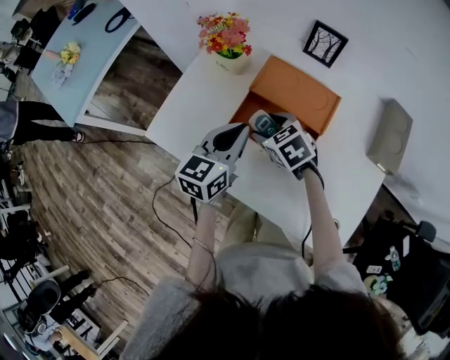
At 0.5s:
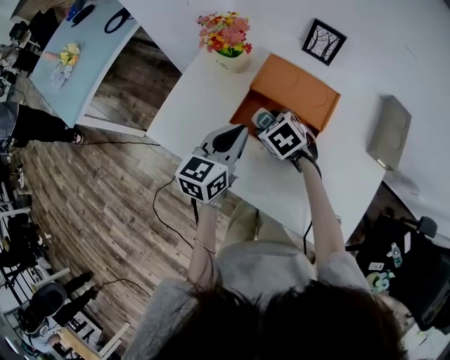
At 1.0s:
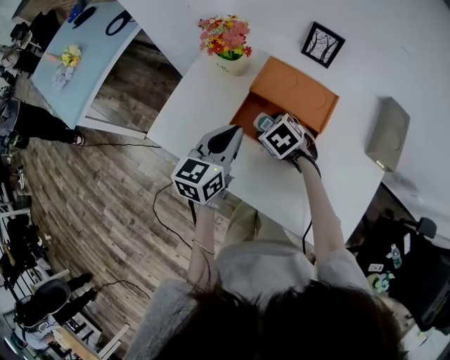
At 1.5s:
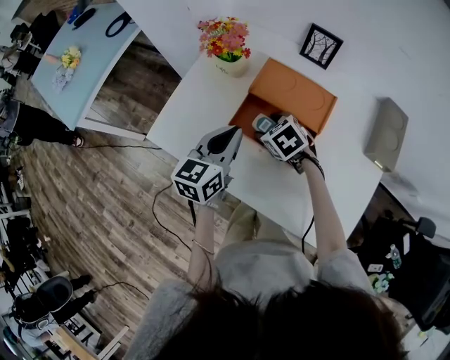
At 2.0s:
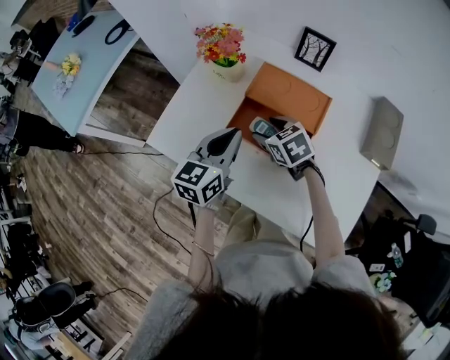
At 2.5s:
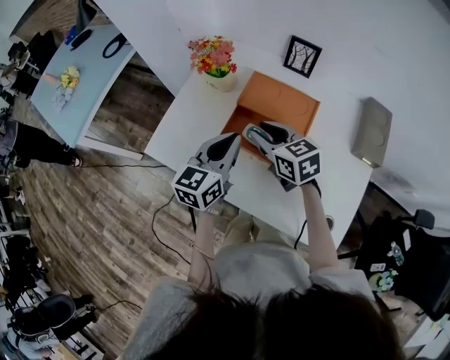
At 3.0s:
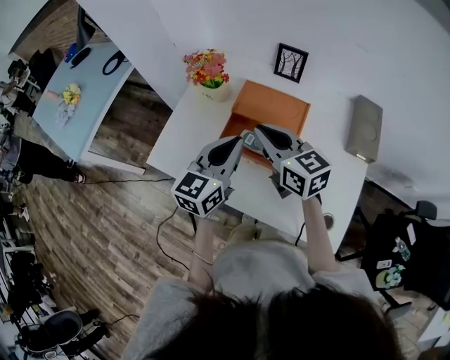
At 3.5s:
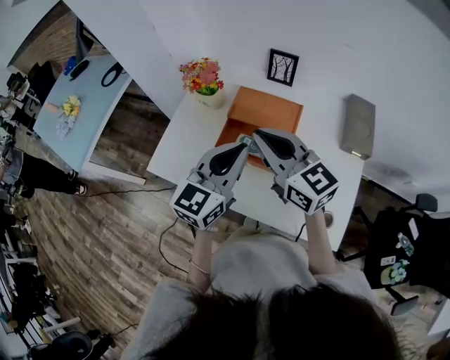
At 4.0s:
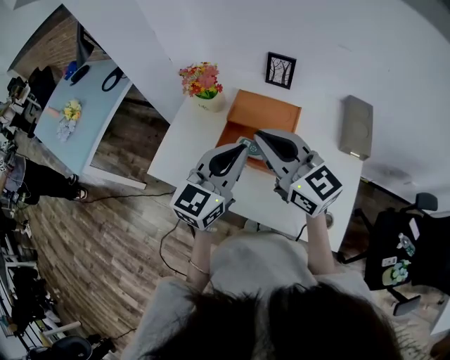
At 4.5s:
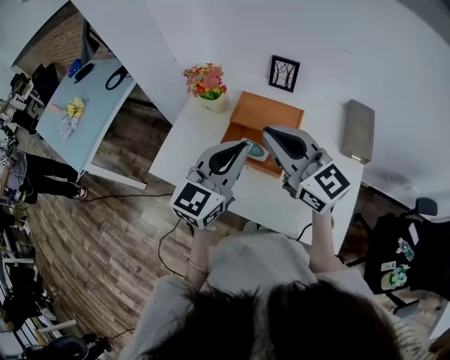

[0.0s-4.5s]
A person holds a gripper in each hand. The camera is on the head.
0.0s to 2.0s: The grippers make only small movements.
2.0s to 4.5s: The right gripper is displaced upward by about 30 cm, tips its fingers upward by about 50 degrees, and closes up; the left gripper travels upward, backward and to the right by roughly 15 cm, and changes its angle by roughly 30 degrees.

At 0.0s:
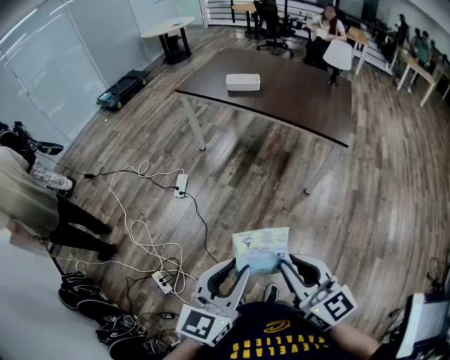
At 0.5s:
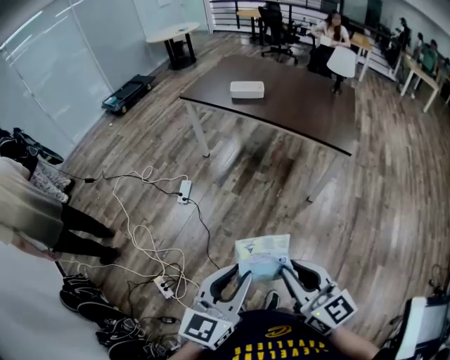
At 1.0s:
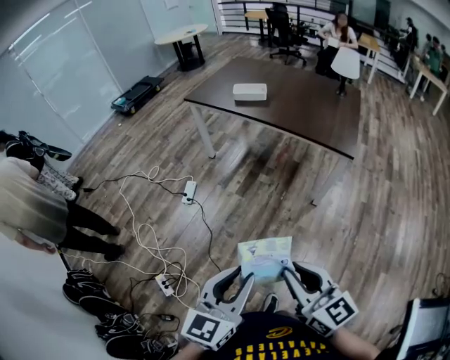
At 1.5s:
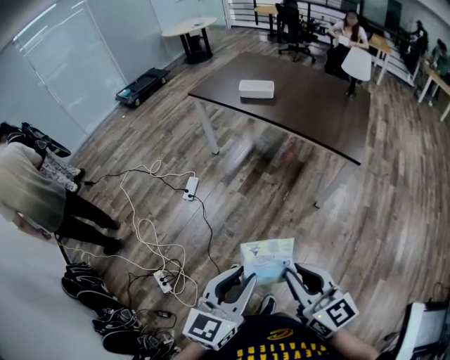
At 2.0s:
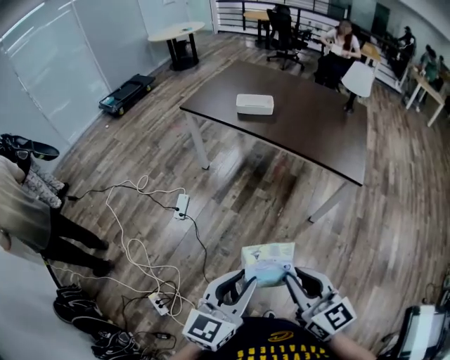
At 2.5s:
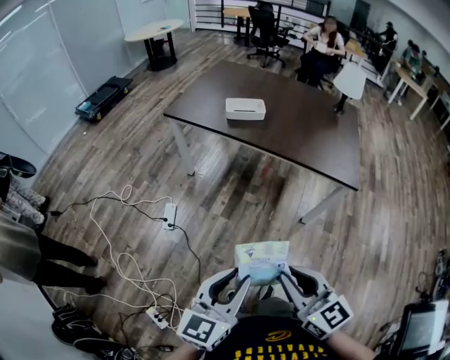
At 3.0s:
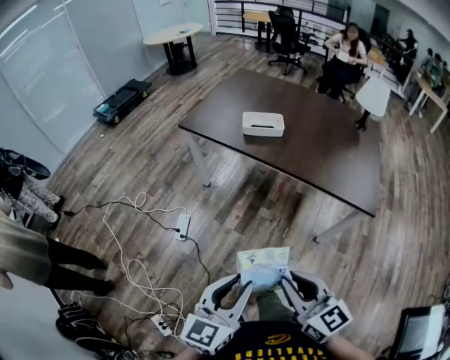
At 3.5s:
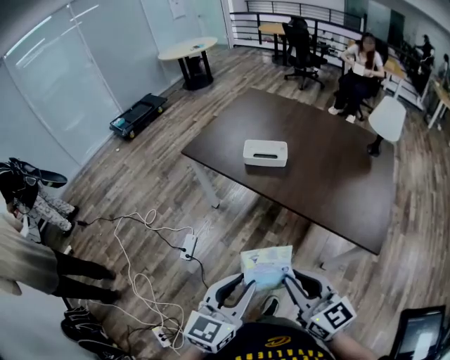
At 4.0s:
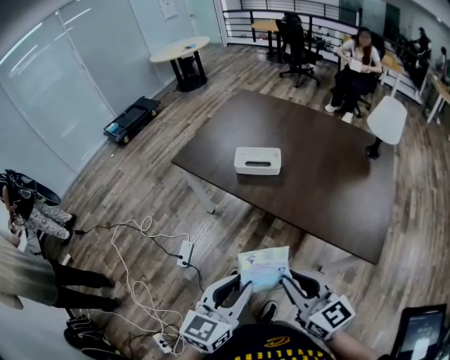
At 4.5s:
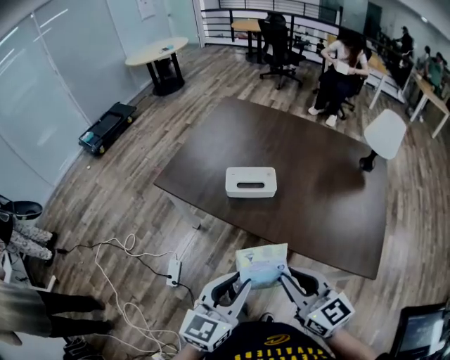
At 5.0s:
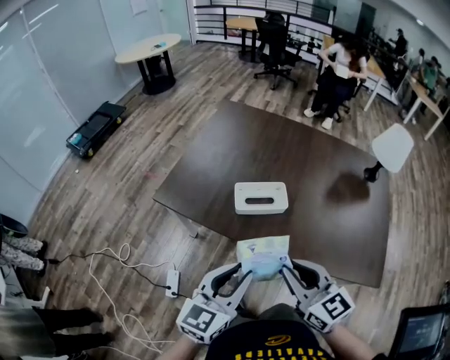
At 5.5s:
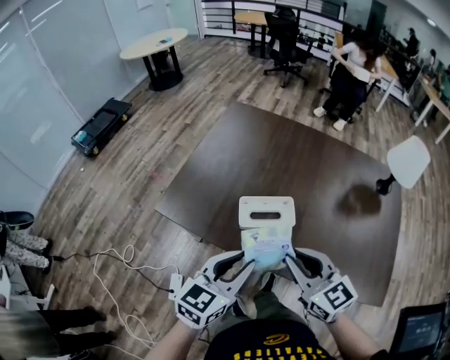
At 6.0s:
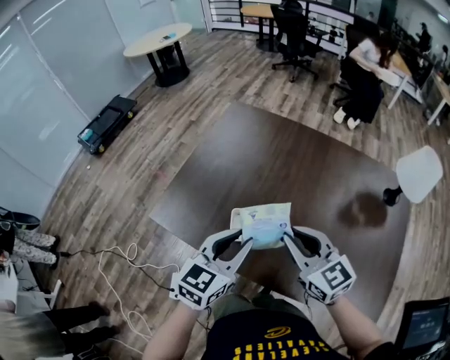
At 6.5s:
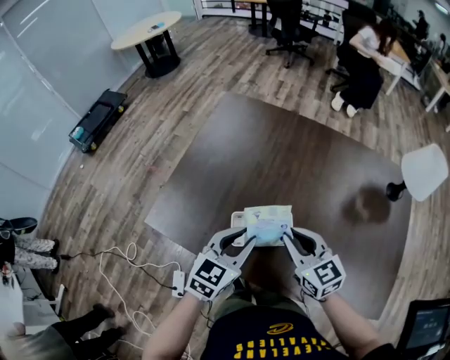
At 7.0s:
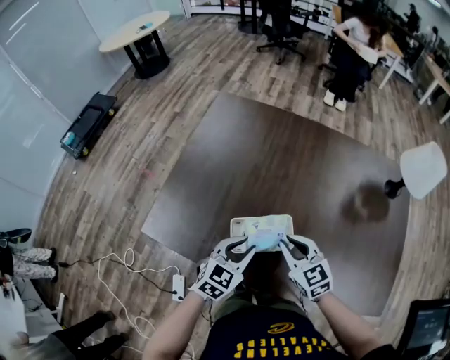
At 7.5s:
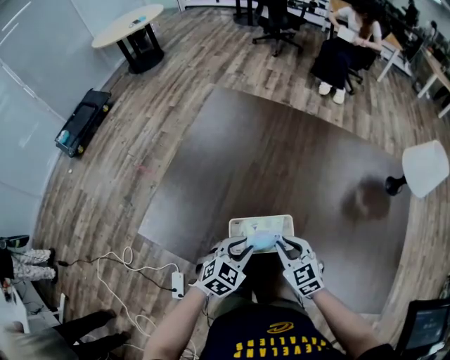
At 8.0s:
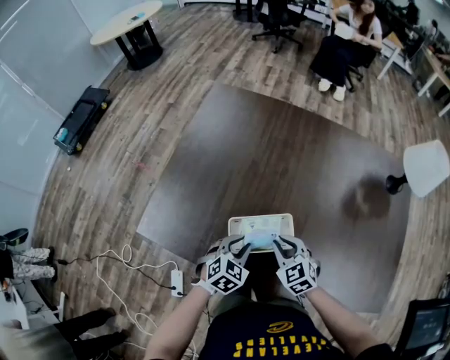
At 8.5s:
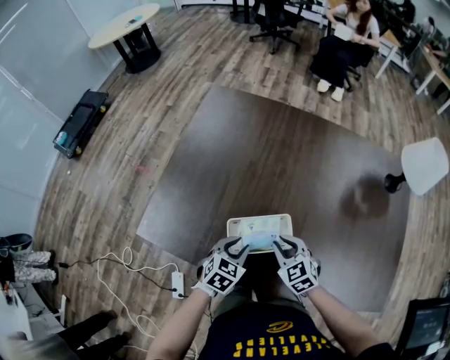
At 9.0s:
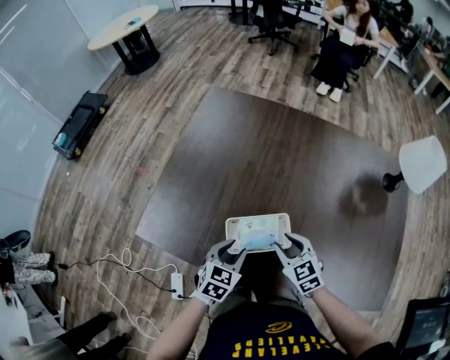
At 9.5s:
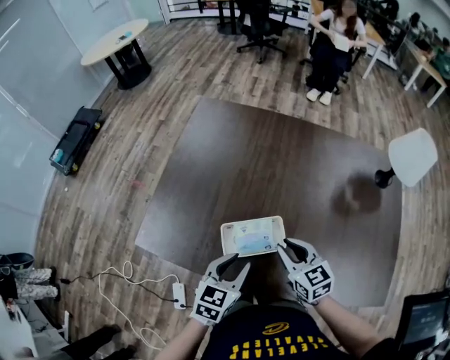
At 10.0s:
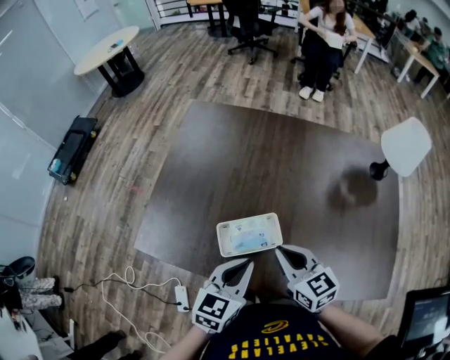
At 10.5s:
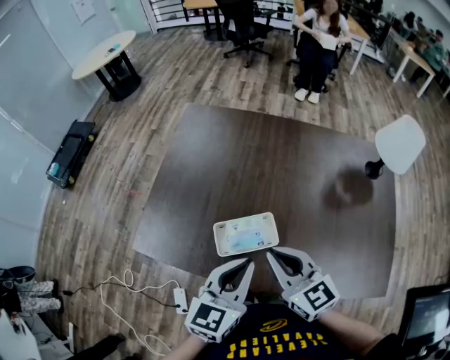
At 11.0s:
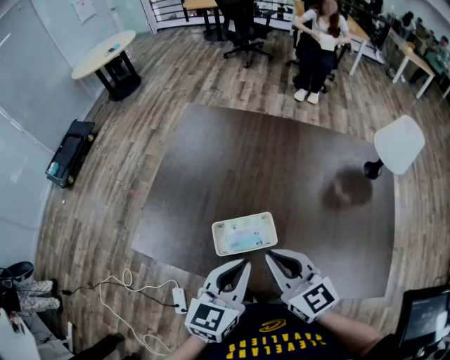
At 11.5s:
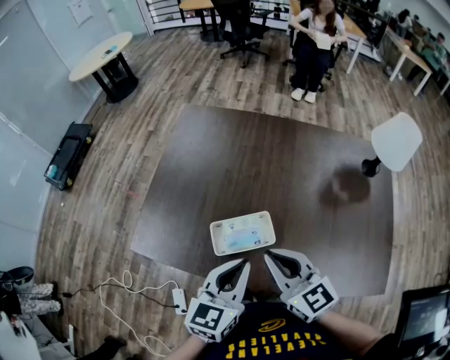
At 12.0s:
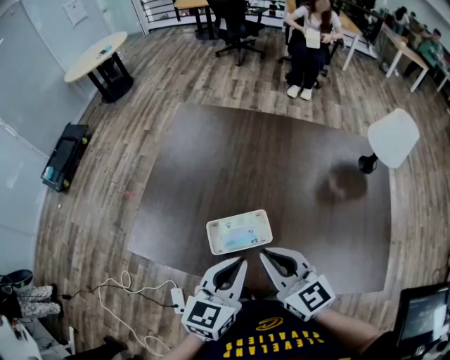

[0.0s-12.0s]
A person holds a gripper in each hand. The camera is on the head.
0.0s to 2.0s: The grippers both shift forward by some 15 cm.
2.0s to 4.0s: Both grippers travel together forward, some 35 cm.
4.0s to 6.0s: The two grippers travel together, forward, some 50 cm.
6.0s to 8.0s: The two grippers go roughly 25 cm downward. The left gripper points its fingers roughly 30 degrees further downward. The right gripper changes its angle by approximately 30 degrees.
8.0s to 10.0s: Both grippers move upward, some 15 cm. The left gripper changes its angle by about 30 degrees, and closes its fingers; the right gripper swivels approximately 30 degrees.
10.0s to 12.0s: The right gripper travels upward by approximately 5 cm.

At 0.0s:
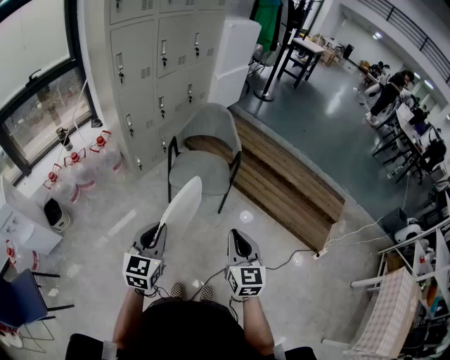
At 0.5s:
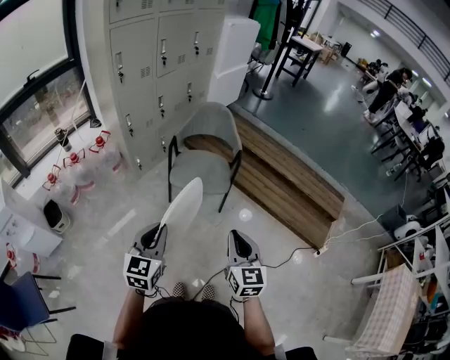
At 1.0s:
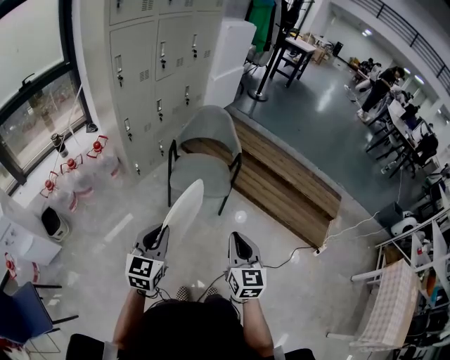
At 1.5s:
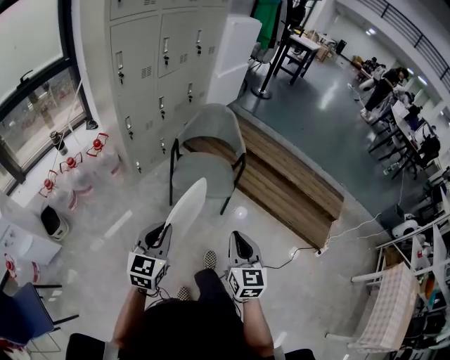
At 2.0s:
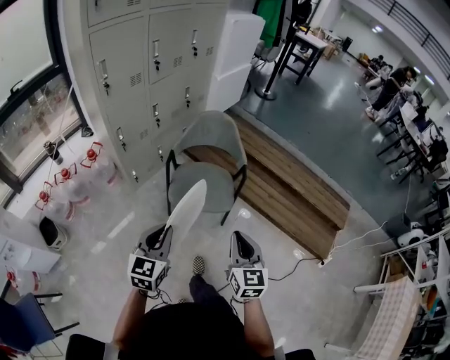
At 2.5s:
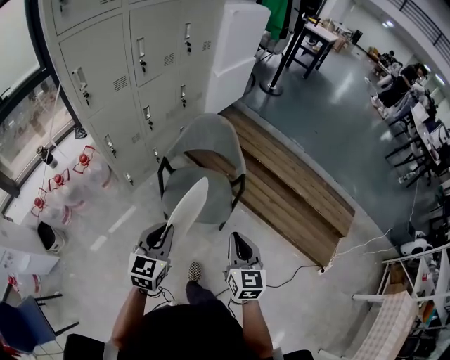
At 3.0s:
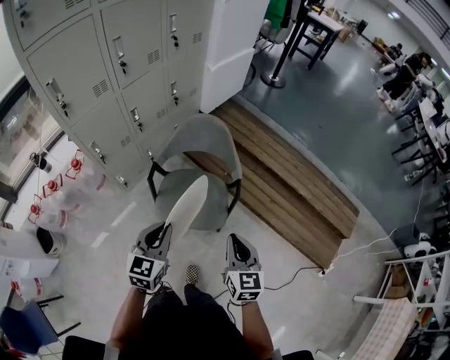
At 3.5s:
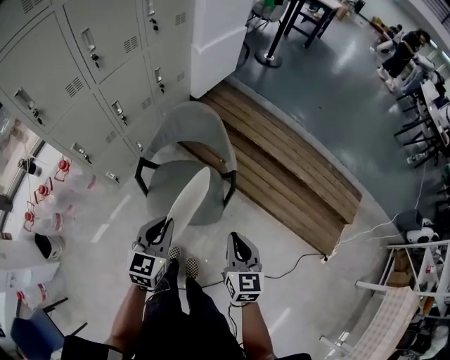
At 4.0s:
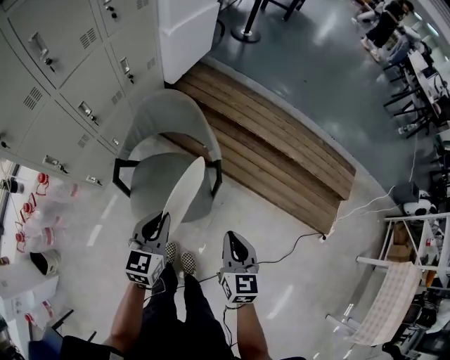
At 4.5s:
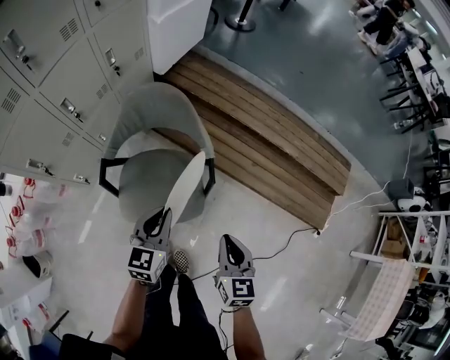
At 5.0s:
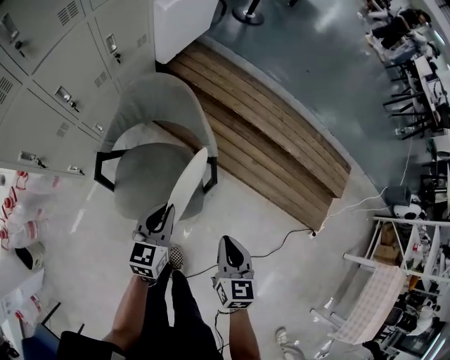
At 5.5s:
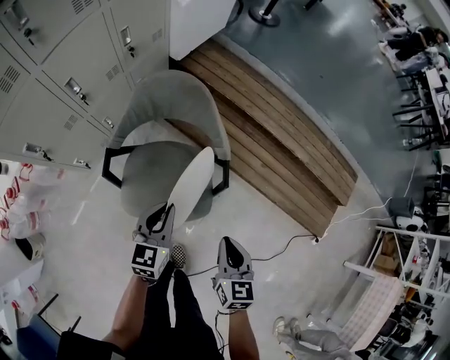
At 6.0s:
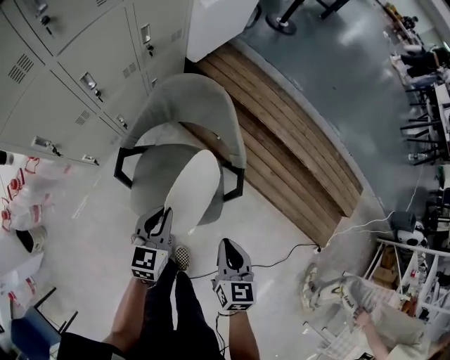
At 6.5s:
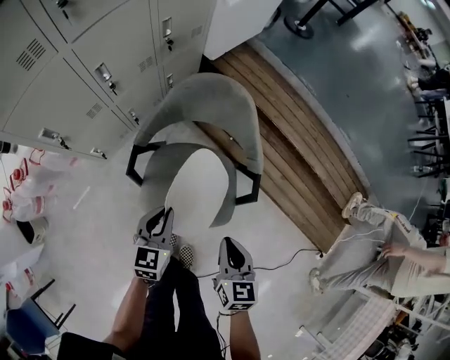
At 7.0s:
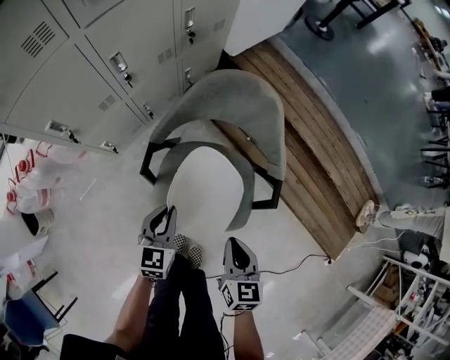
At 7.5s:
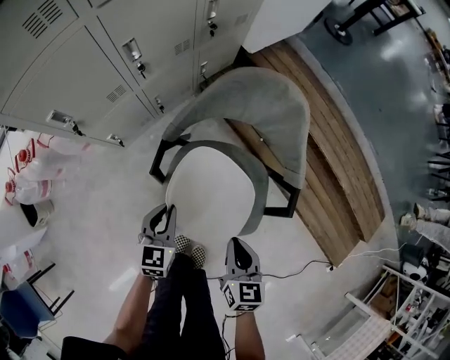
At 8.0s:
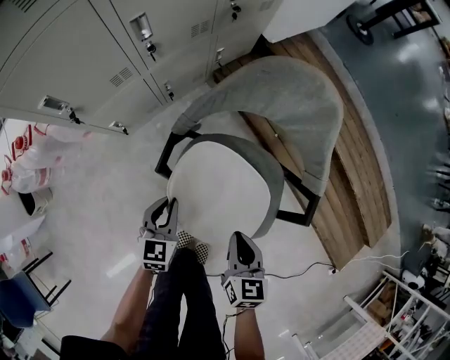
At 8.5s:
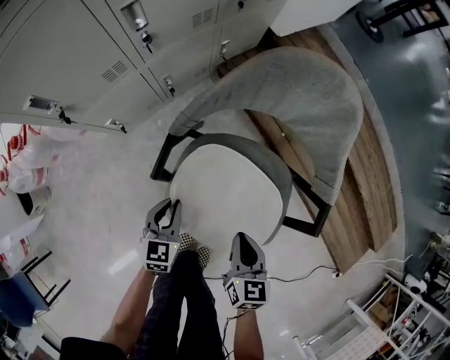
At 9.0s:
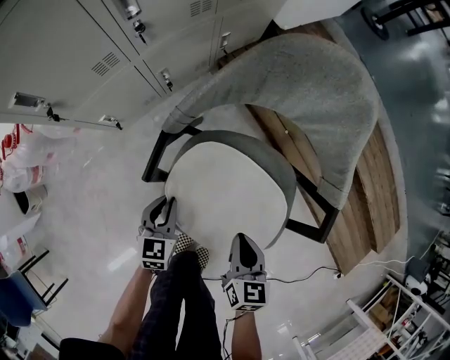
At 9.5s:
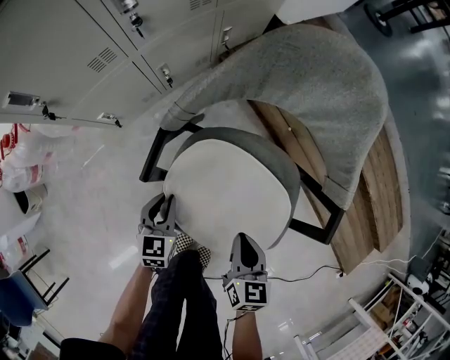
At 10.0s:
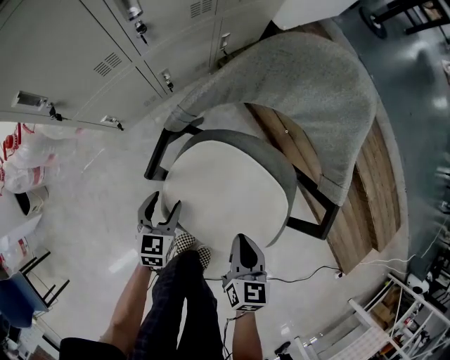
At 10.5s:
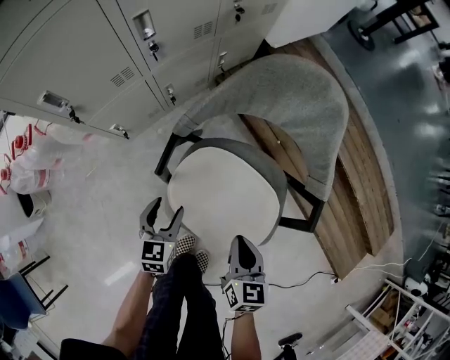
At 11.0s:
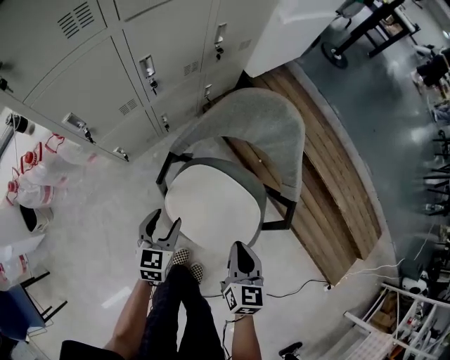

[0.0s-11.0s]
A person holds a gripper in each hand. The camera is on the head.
0.0s to 2.0s: The grippers both shift forward by roughly 20 cm.
2.0s to 3.5s: The right gripper is displaced forward and downward by roughly 30 cm. The left gripper shifts some 30 cm forward.
3.5s to 5.5s: The grippers both shift downward and forward by roughly 20 cm.
5.5s to 7.5s: Both grippers travel together to the left and downward, approximately 25 cm.
7.5s to 9.0s: The grippers both shift downward by about 15 cm.
9.0s to 11.0s: Both grippers travel together upward, about 20 cm. The left gripper opens its fingers.
